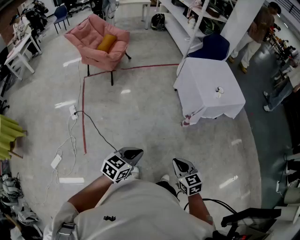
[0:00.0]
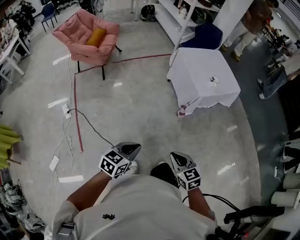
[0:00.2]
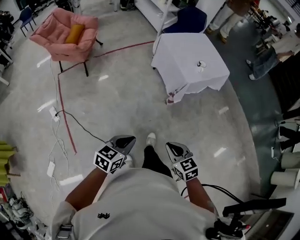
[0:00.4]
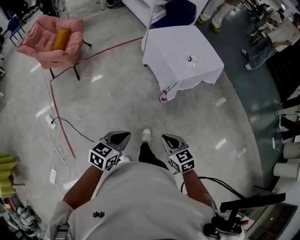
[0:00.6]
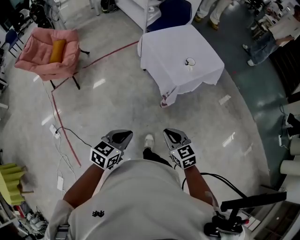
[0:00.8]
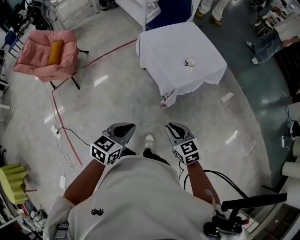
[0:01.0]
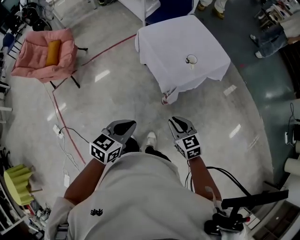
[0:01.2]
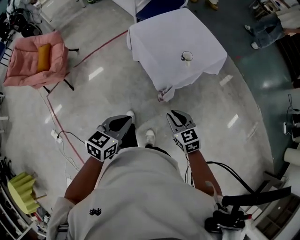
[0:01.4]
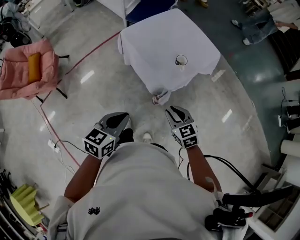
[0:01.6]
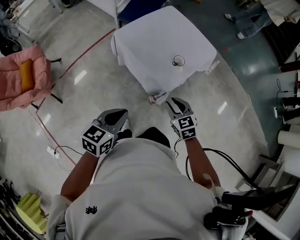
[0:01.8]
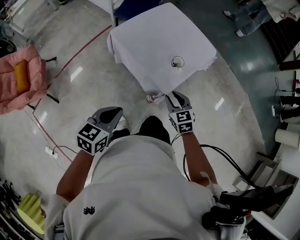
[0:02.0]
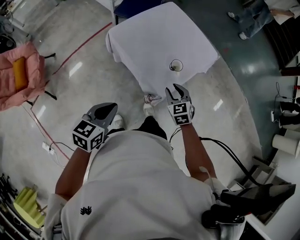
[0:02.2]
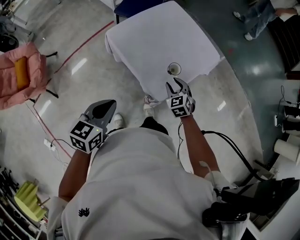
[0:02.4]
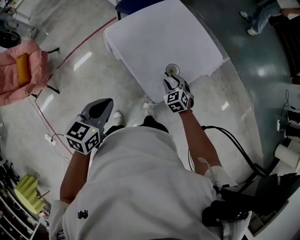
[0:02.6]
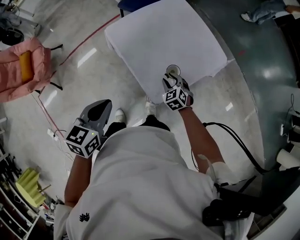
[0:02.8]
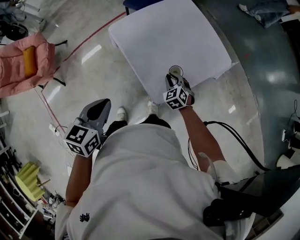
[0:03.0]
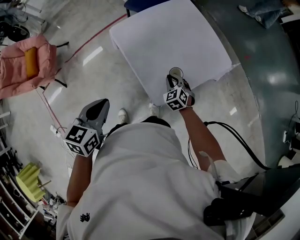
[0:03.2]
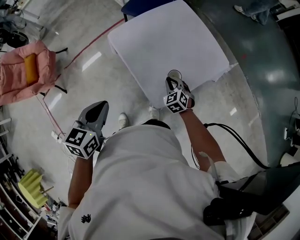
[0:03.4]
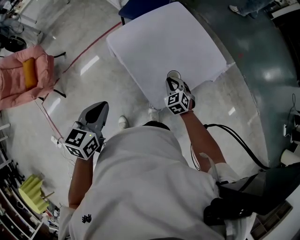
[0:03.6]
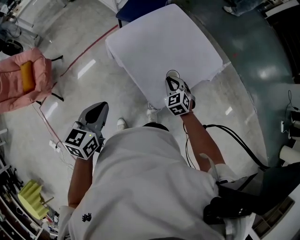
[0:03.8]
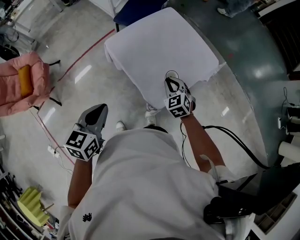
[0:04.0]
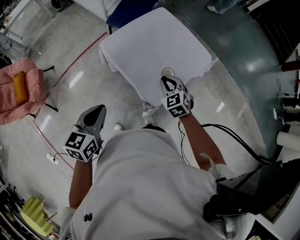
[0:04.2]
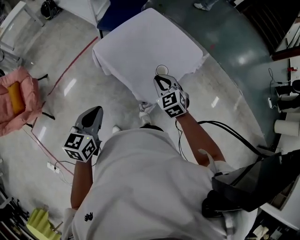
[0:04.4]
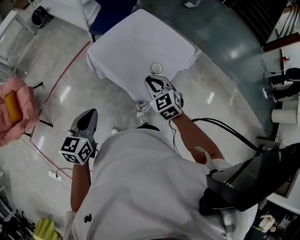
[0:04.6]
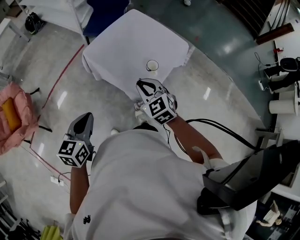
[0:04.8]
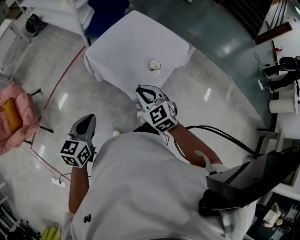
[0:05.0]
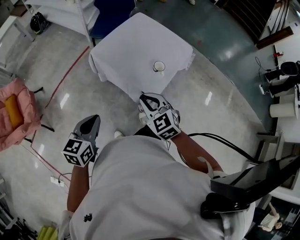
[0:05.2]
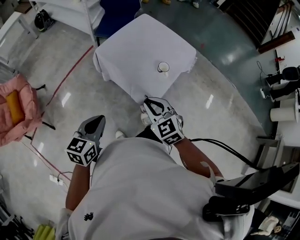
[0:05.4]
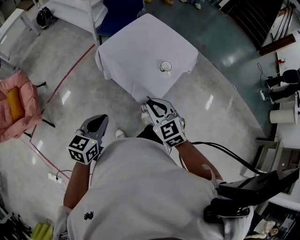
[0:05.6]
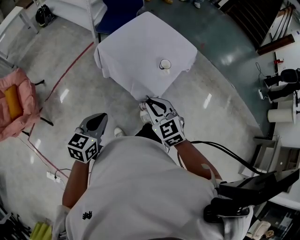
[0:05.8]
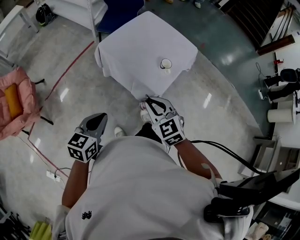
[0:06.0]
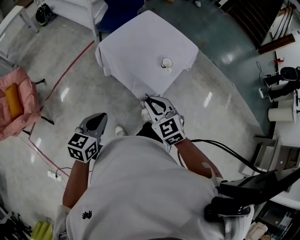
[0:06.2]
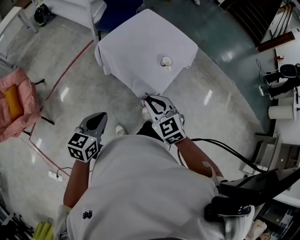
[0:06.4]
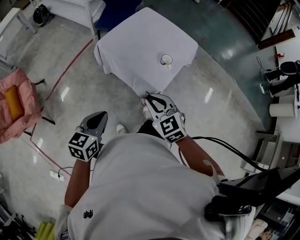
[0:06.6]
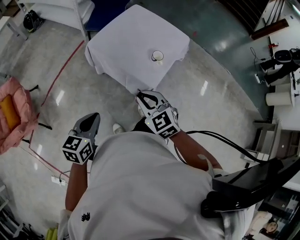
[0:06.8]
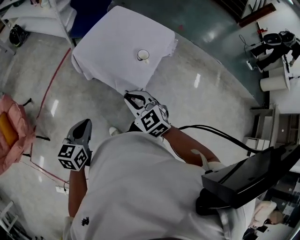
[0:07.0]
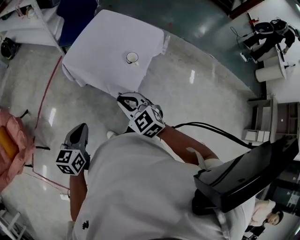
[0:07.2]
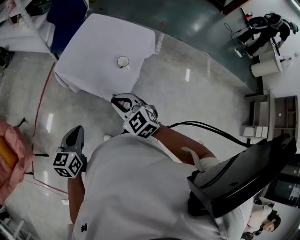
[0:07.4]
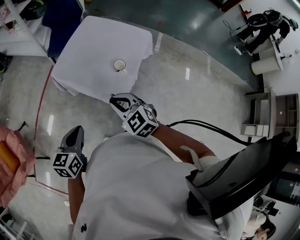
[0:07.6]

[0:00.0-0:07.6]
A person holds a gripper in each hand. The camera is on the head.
0.0 to 1.6 s: The two grippers travel together, forward, about 50 cm. The right gripper opens.
1.6 to 3.0 s: The left gripper shifts some 25 cm forward, while the right gripper is displaced forward and downward by about 40 cm, and swivels approximately 20 degrees.
3.0 to 4.6 s: The right gripper travels upward and backward by some 25 cm. The left gripper goes roughly 10 cm to the left and backward.
4.6 to 6.0 s: The left gripper travels backward by approximately 10 cm; the right gripper moves backward and to the left, approximately 20 cm.
6.0 to 7.6 s: The two grippers go roughly 10 cm forward and to the right.

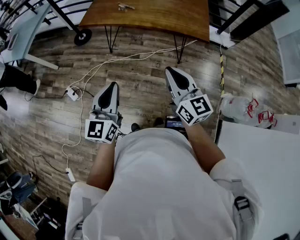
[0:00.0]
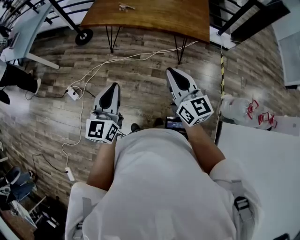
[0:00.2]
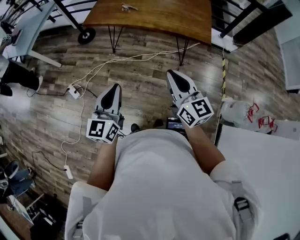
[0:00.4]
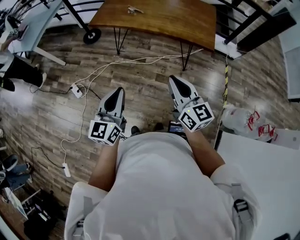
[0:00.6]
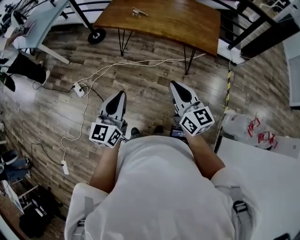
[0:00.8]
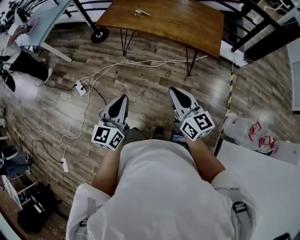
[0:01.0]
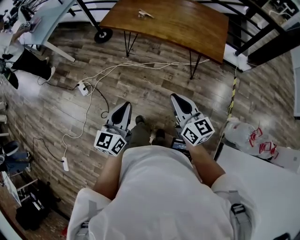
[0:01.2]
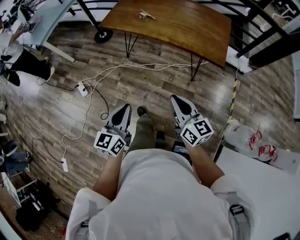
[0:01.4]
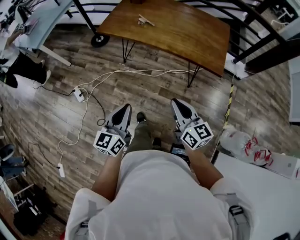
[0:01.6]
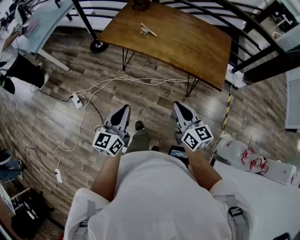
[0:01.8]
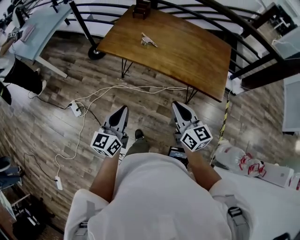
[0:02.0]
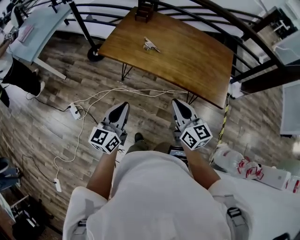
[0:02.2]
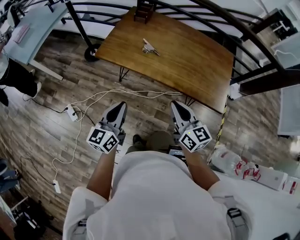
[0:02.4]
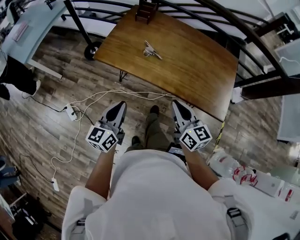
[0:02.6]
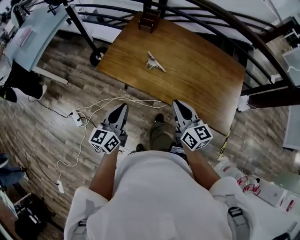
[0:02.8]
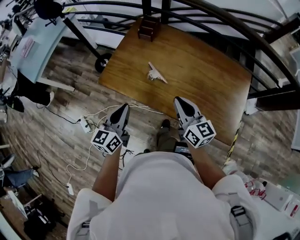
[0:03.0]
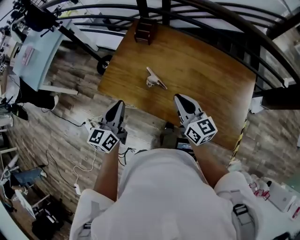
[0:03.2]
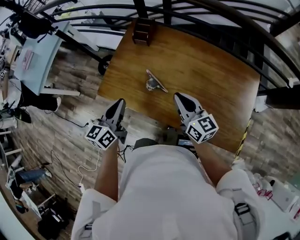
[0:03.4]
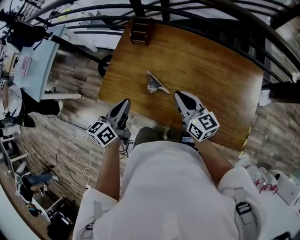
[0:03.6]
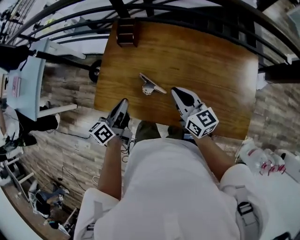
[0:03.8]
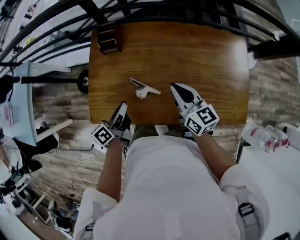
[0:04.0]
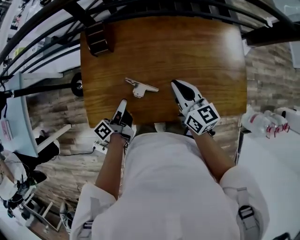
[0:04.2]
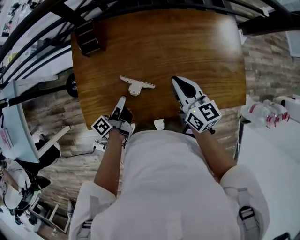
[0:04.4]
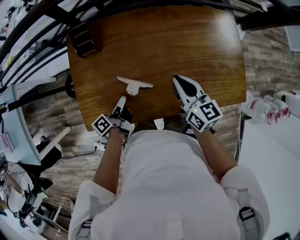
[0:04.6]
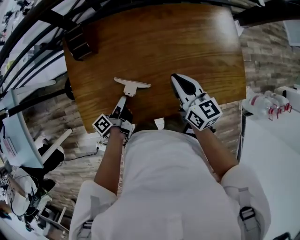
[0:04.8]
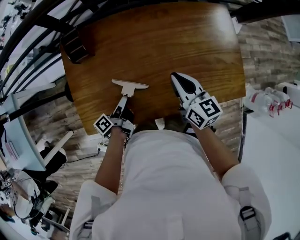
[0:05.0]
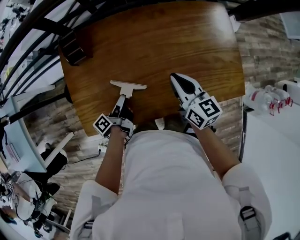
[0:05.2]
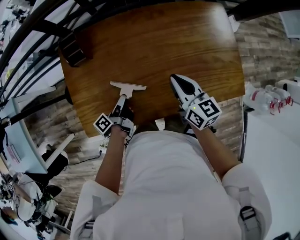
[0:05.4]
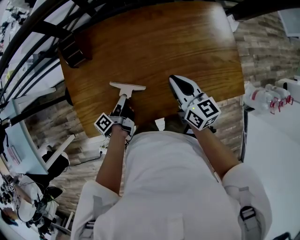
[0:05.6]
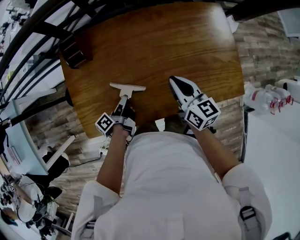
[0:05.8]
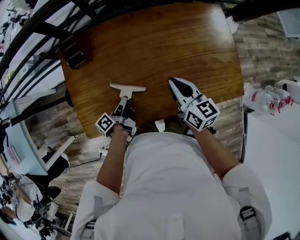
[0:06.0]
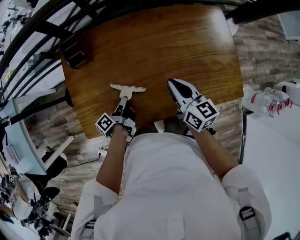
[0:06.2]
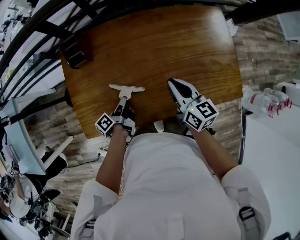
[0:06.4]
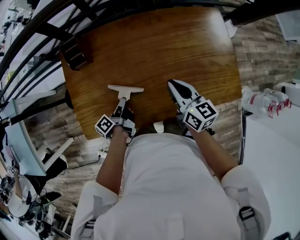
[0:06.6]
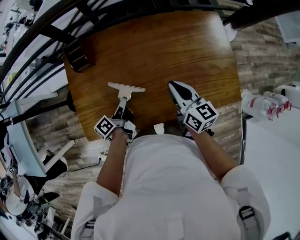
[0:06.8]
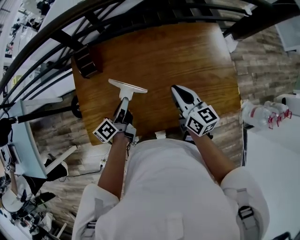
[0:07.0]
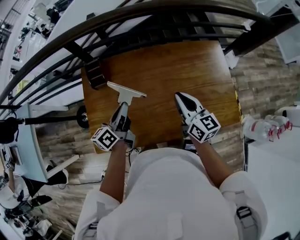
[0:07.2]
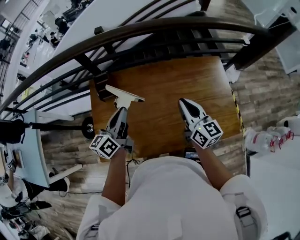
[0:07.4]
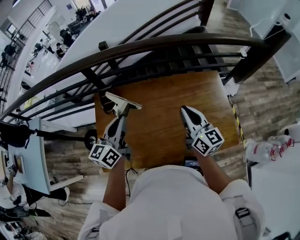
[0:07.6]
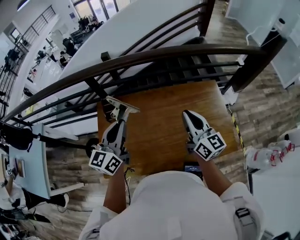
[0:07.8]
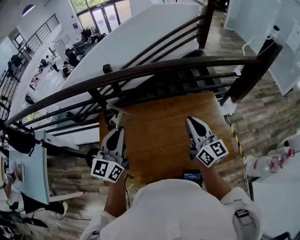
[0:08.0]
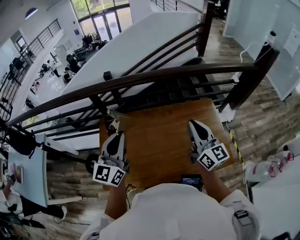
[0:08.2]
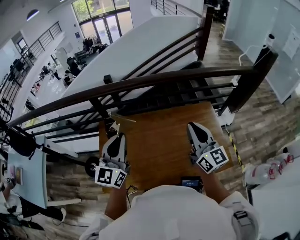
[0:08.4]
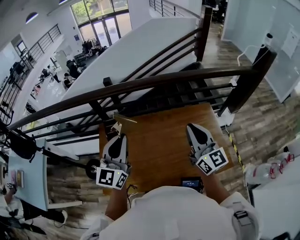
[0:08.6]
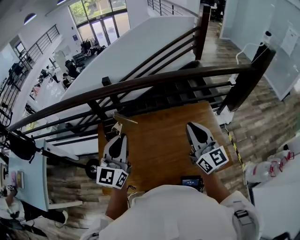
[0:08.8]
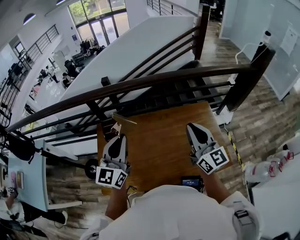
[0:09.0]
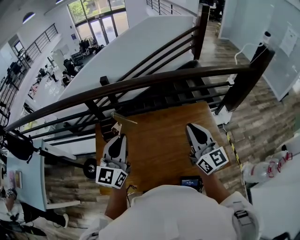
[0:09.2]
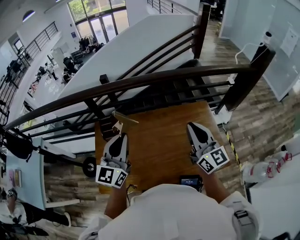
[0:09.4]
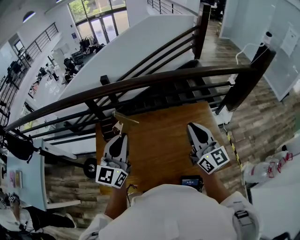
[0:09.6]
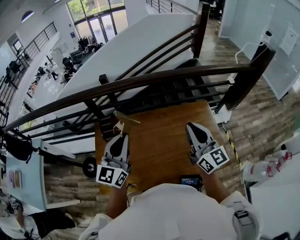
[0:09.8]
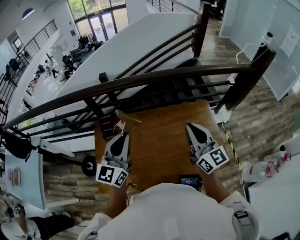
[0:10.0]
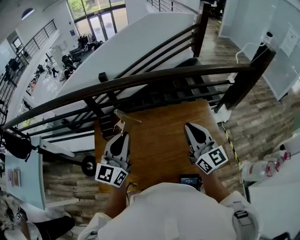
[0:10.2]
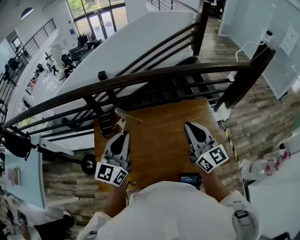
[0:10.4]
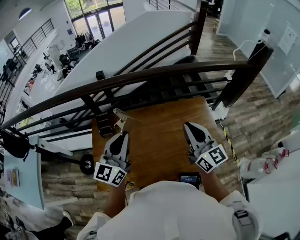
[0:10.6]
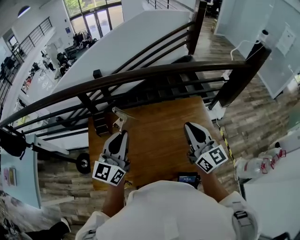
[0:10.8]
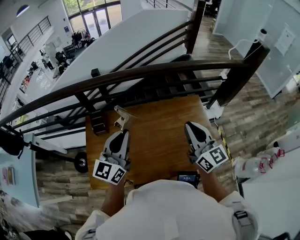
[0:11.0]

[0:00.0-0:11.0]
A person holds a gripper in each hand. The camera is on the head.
0.0 to 1.6 s: The right gripper heads downward and forward, covering some 10 cm; the left gripper goes about 5 cm downward.
1.6 to 3.2 s: The two grippers travel together, forward, roughly 50 cm.
3.2 to 4.8 s: The left gripper travels downward by about 25 cm, rotates around the line of its fingers by roughly 60 degrees, counterclockwise from behind, and opens; the right gripper changes place by some 15 cm, and rotates about 30 degrees.
4.8 to 6.2 s: The left gripper closes.
6.2 to 7.8 s: The left gripper shifts about 40 cm upward, and rolls clockwise, seen from behind, by roughly 80 degrees. The right gripper heads upward, covering some 25 cm, and turns by approximately 30 degrees.
7.8 to 9.4 s: The left gripper is displaced upward by approximately 5 cm; the right gripper travels upward and to the right by roughly 10 cm.
9.4 to 11.0 s: The grippers stay close to where they were, moving slightly.

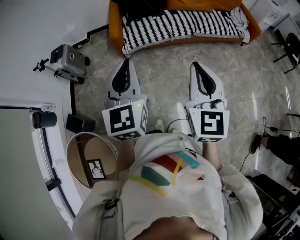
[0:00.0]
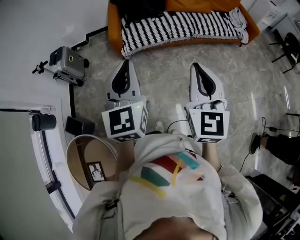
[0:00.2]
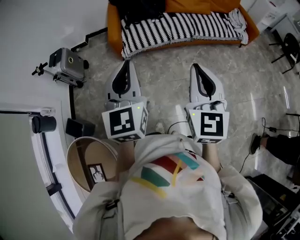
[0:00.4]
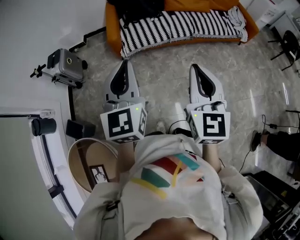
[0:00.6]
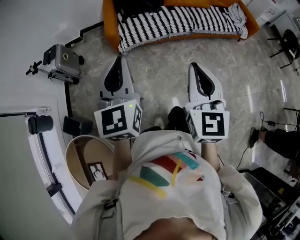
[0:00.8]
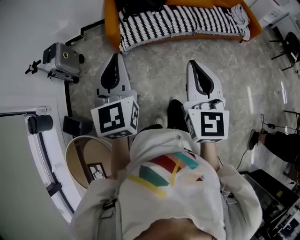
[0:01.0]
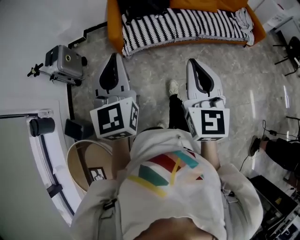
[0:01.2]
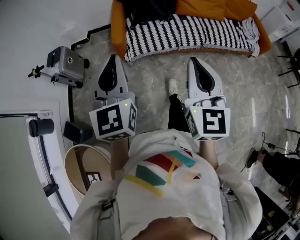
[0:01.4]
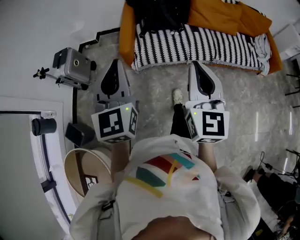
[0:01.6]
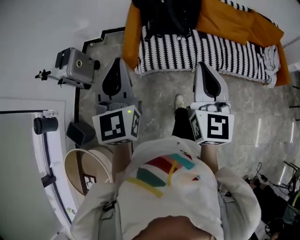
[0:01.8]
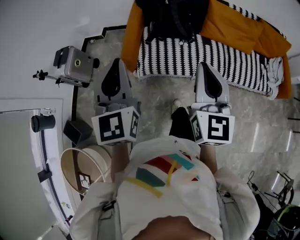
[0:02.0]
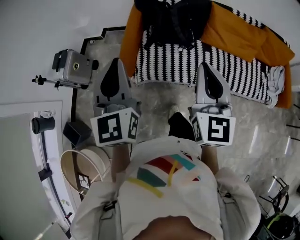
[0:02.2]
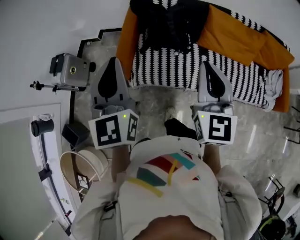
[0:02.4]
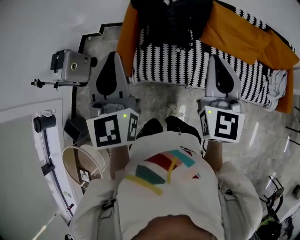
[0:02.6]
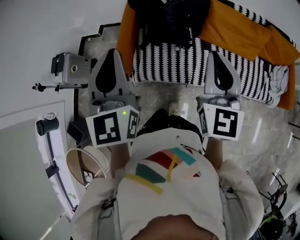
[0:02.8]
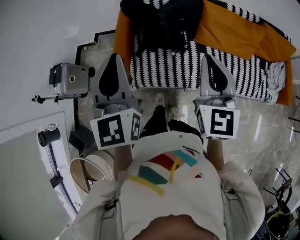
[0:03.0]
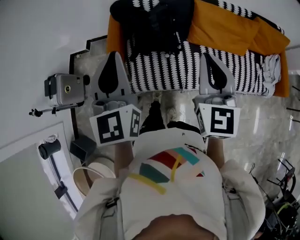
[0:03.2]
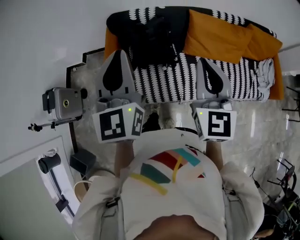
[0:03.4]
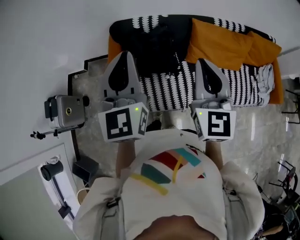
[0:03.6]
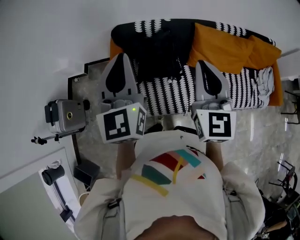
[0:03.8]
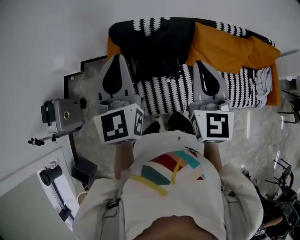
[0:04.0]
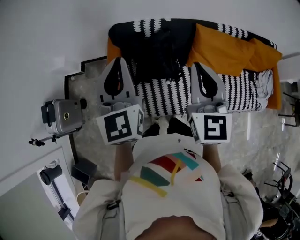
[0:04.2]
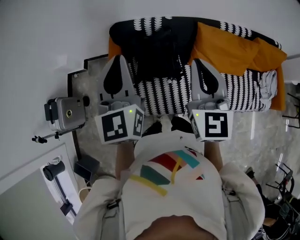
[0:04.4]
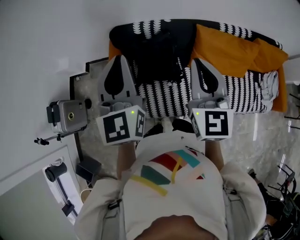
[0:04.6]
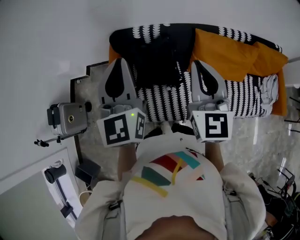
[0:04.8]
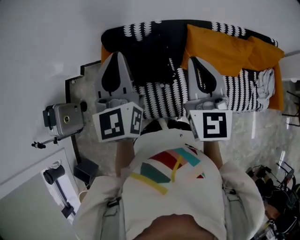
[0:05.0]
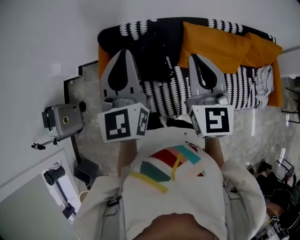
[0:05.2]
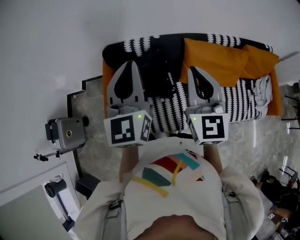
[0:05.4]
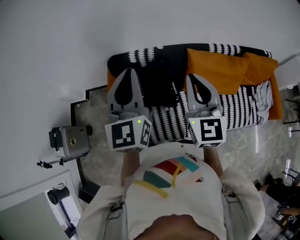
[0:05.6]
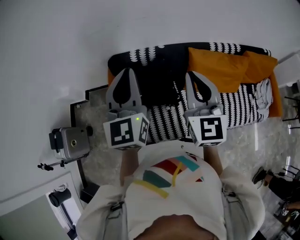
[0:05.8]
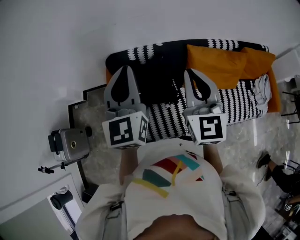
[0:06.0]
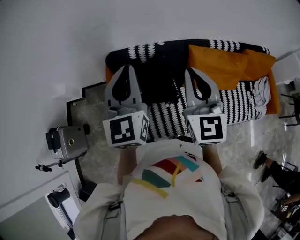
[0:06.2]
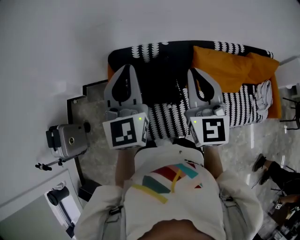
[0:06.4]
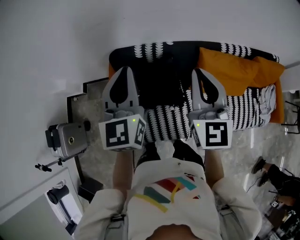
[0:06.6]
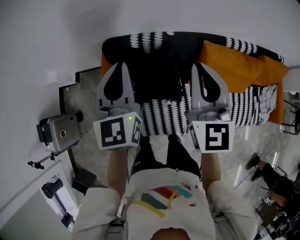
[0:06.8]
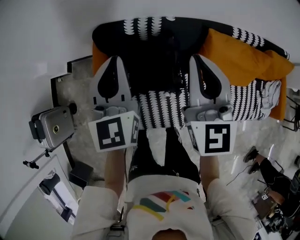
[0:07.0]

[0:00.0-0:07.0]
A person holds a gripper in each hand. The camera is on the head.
0.0 to 1.4 s: The grippers both shift forward by some 15 cm.
1.4 to 2.8 s: The two grippers travel together, forward and to the right, some 40 cm.
2.8 to 4.2 s: The two grippers go about 20 cm forward.
4.2 to 5.6 s: Both grippers travel together to the right and forward, approximately 10 cm.
5.6 to 7.0 s: The left gripper goes some 20 cm downward and forward. The right gripper heads forward, downward and to the left, covering approximately 15 cm.
